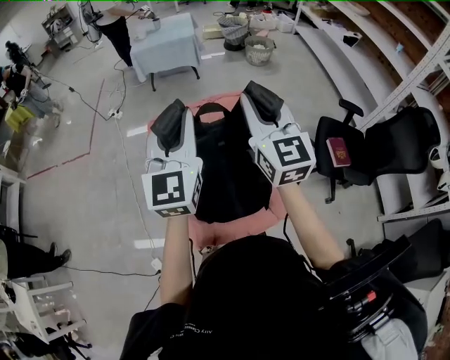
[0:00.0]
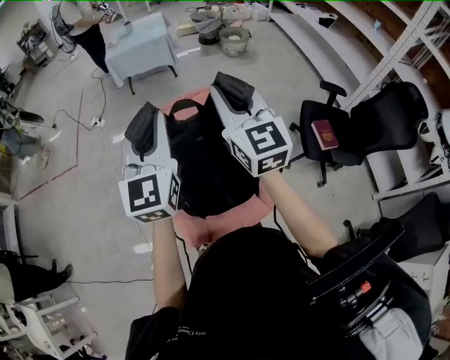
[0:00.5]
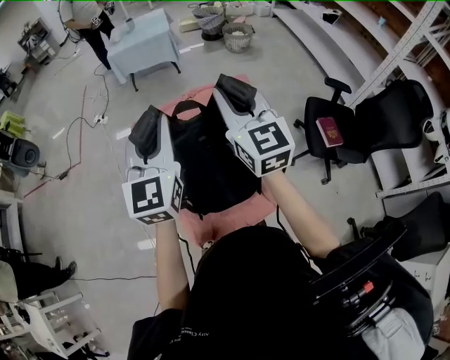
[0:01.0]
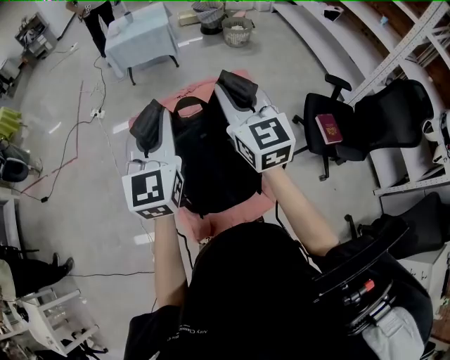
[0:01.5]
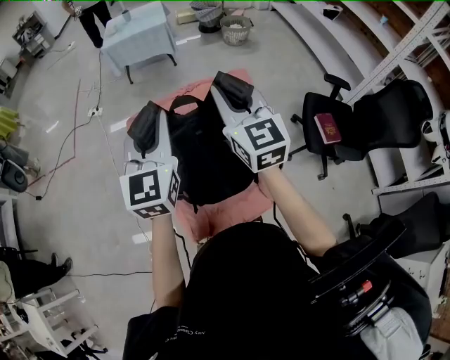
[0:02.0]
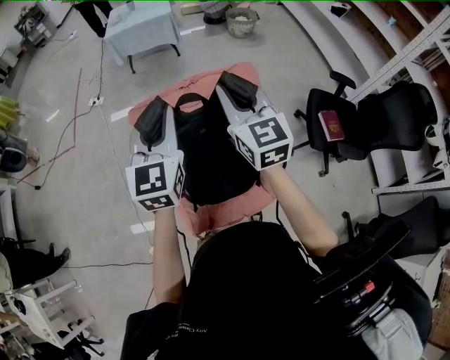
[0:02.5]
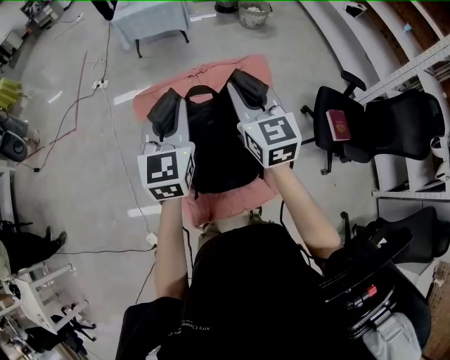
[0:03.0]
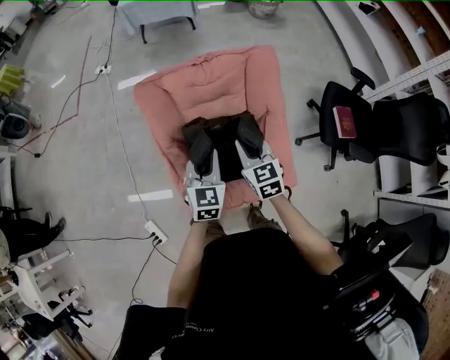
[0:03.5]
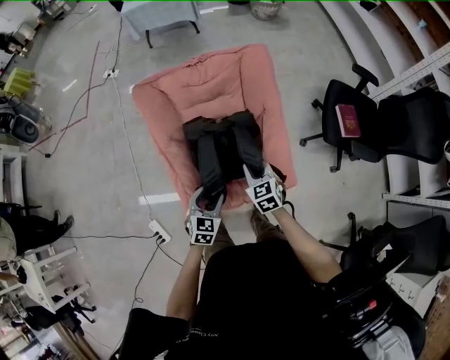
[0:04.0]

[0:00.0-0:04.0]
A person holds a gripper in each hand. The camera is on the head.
0:00.0 to 0:02.0: The left gripper moves approximately 5 cm. The right gripper moves about 5 cm.
0:02.0 to 0:04.0: Both grippers move downward and backward, roughly 40 cm. The left gripper points its fingers approximately 40 degrees further downward, and opens its fingers, while the right gripper tips its fingers downward by some 40 degrees.

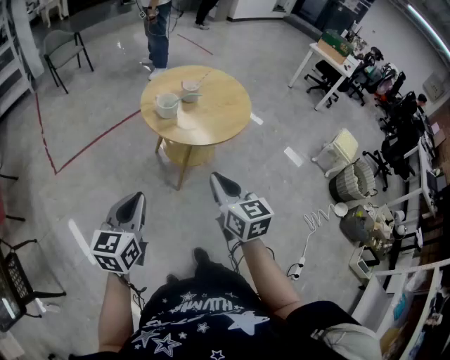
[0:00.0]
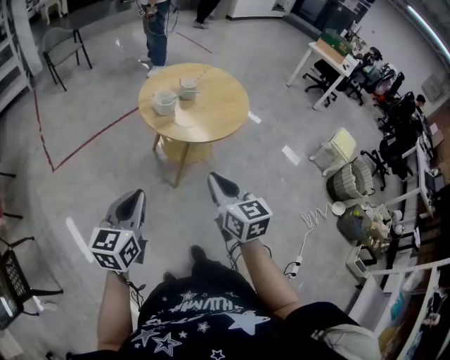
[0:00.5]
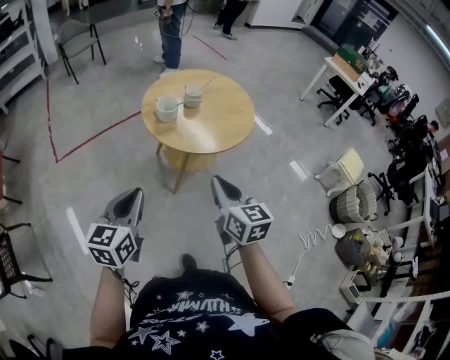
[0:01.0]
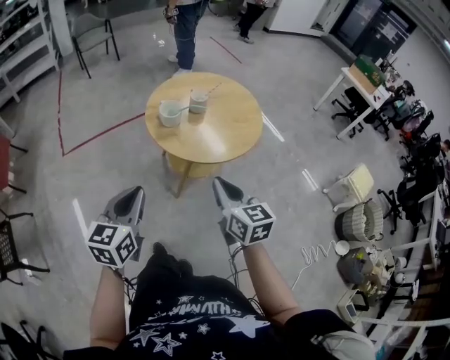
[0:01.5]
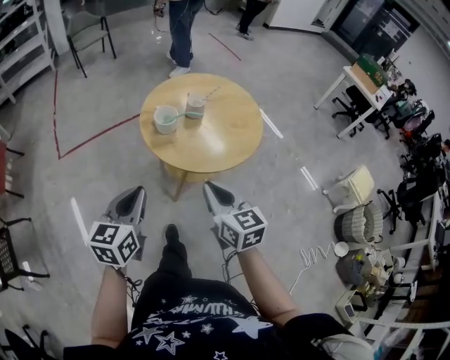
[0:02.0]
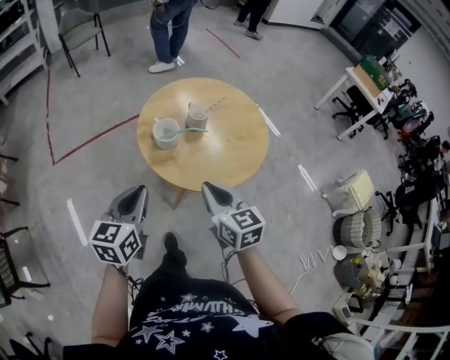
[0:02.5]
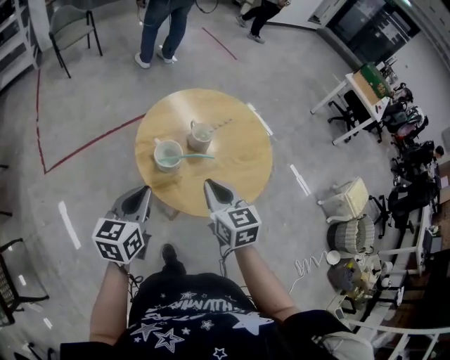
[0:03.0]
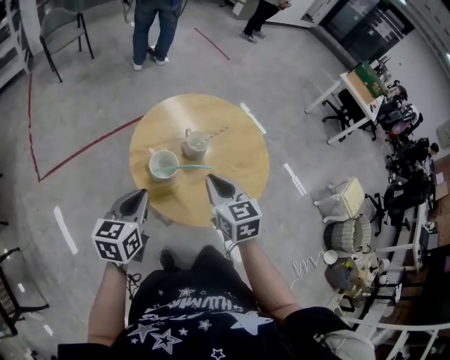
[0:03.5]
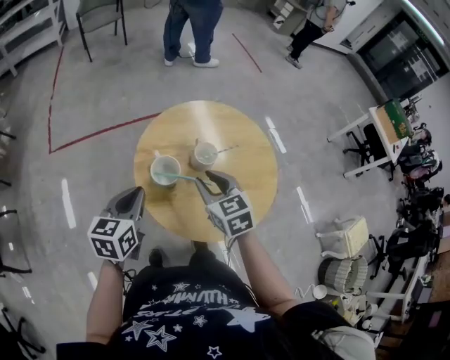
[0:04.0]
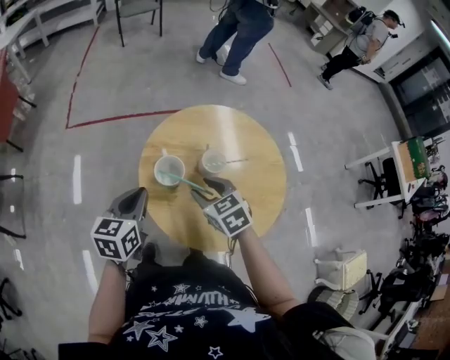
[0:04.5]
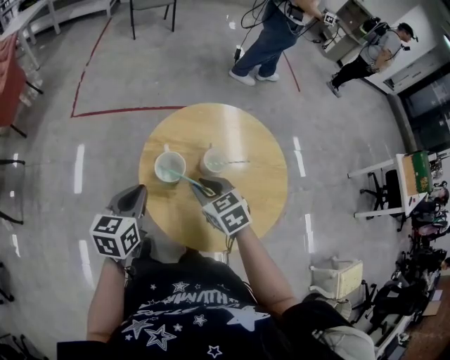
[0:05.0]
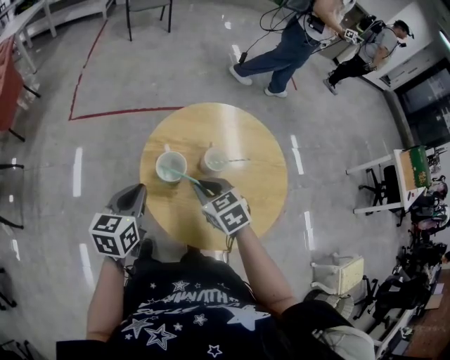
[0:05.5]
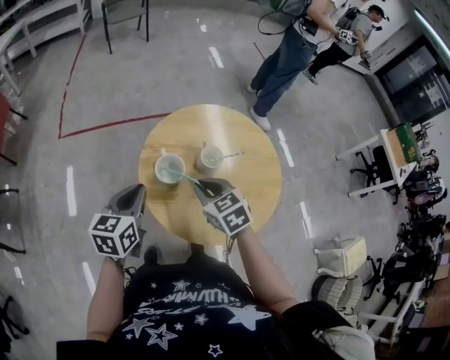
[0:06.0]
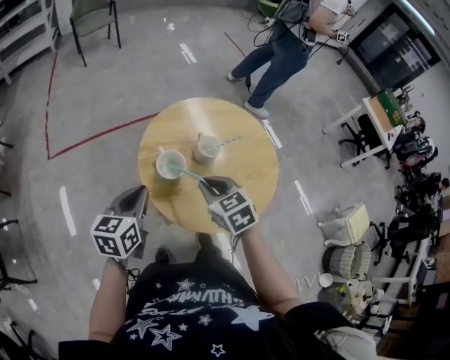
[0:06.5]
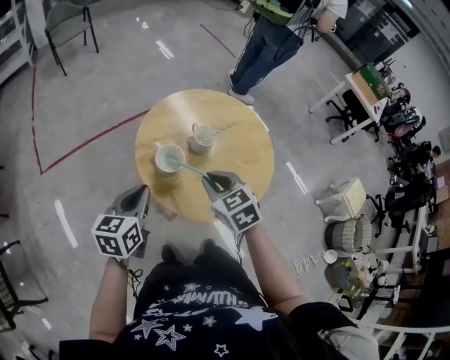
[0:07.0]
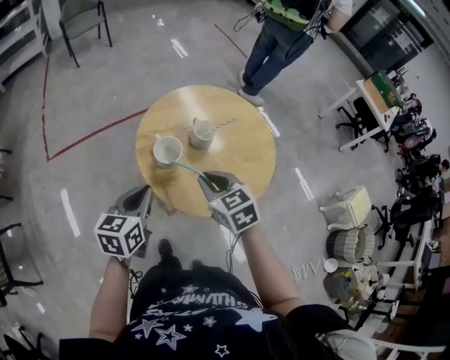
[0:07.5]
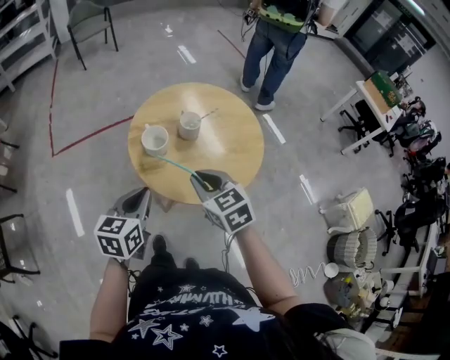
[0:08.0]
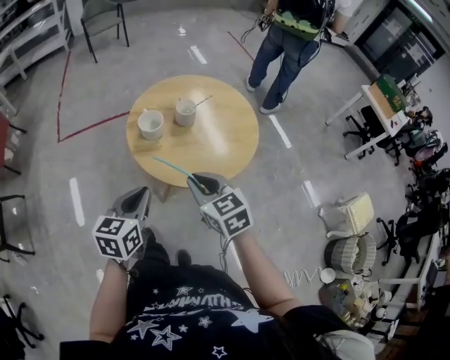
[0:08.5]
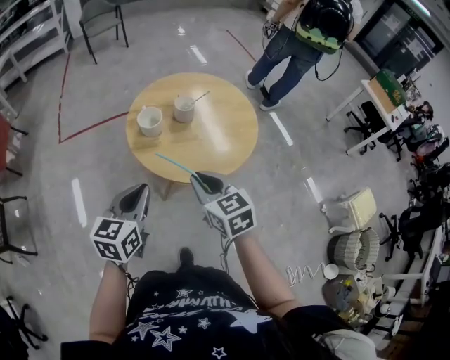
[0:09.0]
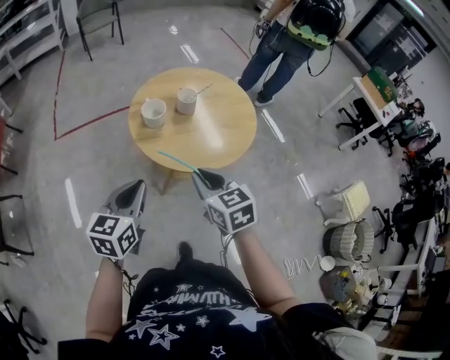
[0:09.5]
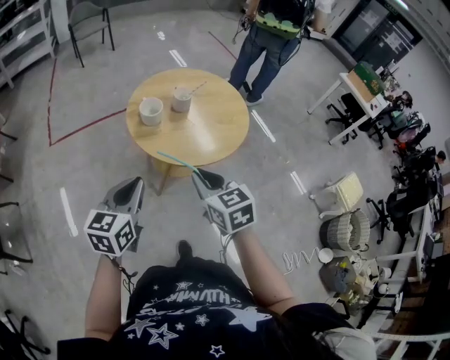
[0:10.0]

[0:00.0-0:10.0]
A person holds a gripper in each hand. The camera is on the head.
0:00.0 to 0:02.0: The grippers both shift forward and to the right by roughly 15 cm.
0:02.0 to 0:04.0: The two grippers go approximately 30 cm forward. The right gripper swivels about 30 degrees, and opens its fingers.
0:04.0 to 0:06.0: The right gripper changes place by roughly 5 cm.
0:06.0 to 0:08.0: The right gripper travels backward and upward by approximately 15 cm. The left gripper is displaced backward and to the right by roughly 15 cm.
0:08.0 to 0:10.0: Both grippers travel together backward, some 15 cm.

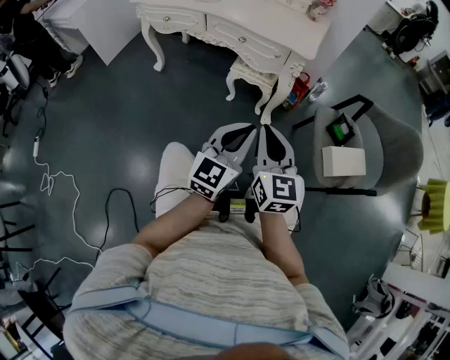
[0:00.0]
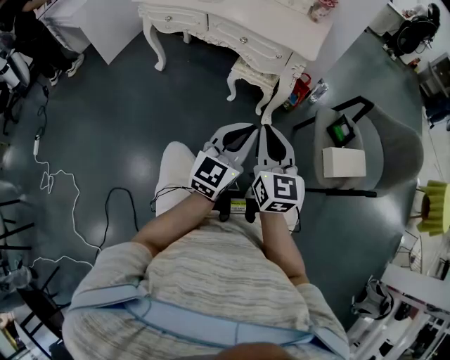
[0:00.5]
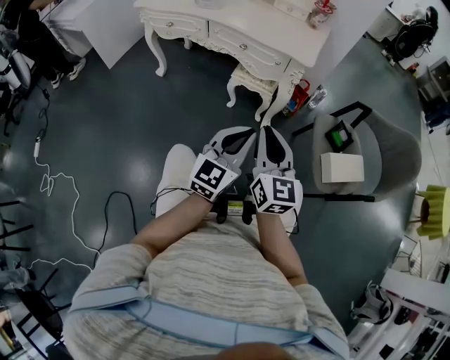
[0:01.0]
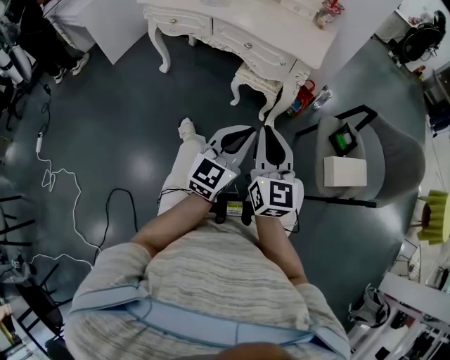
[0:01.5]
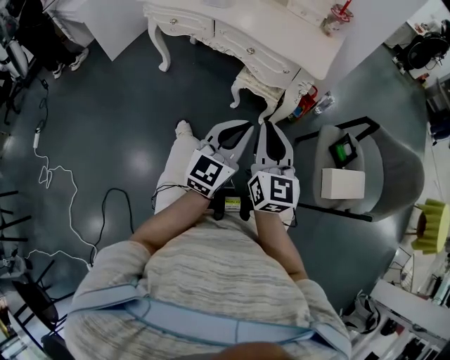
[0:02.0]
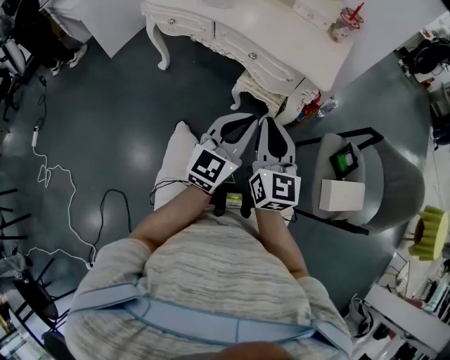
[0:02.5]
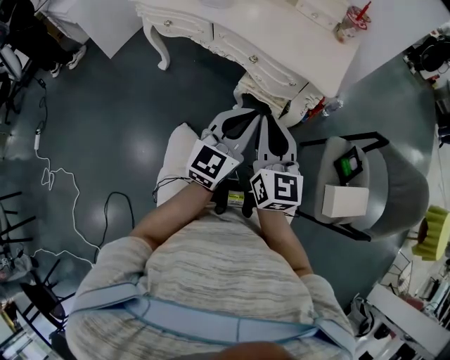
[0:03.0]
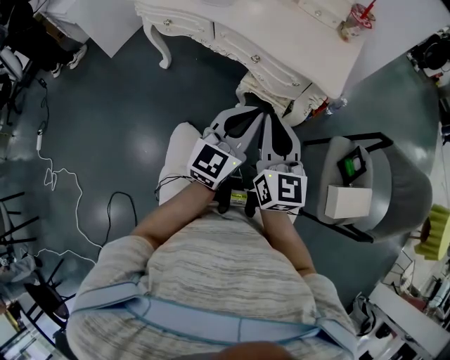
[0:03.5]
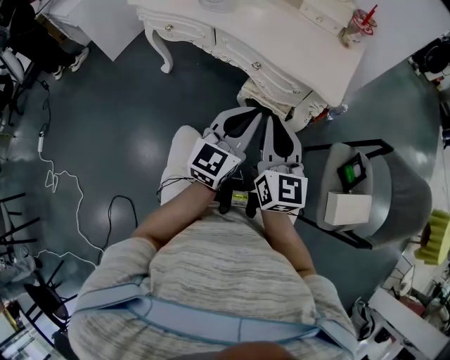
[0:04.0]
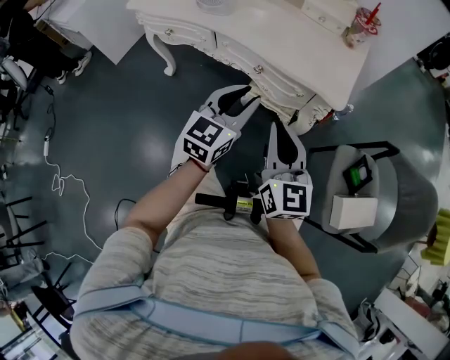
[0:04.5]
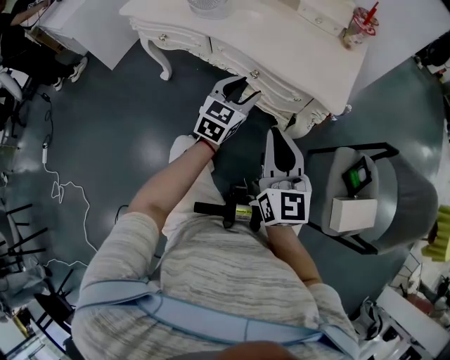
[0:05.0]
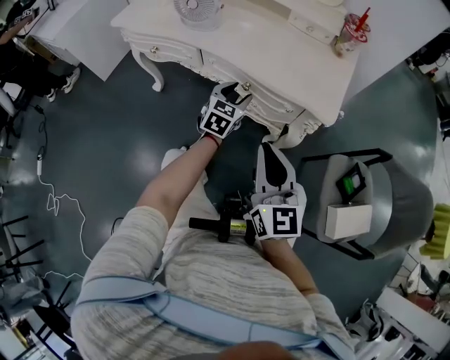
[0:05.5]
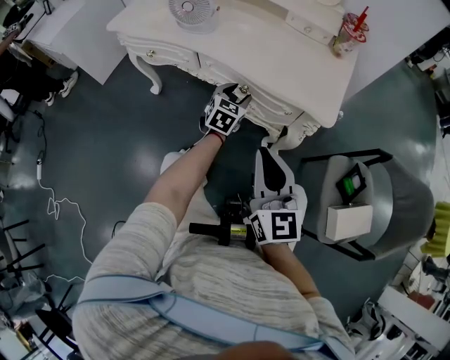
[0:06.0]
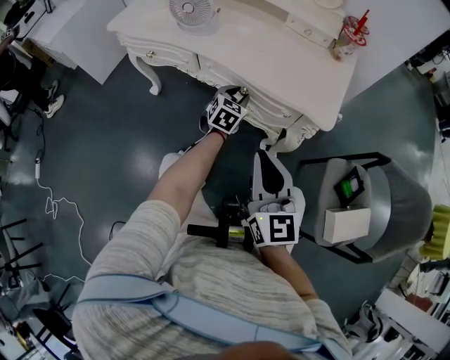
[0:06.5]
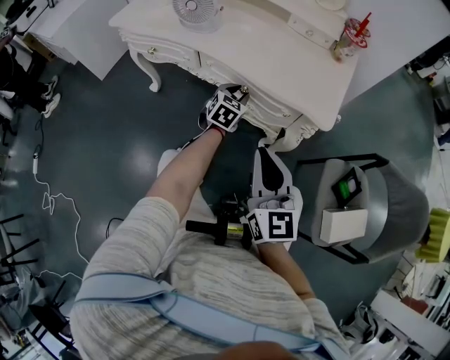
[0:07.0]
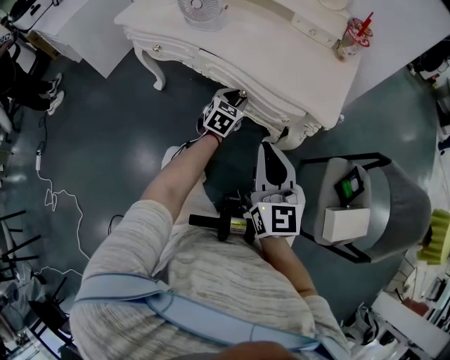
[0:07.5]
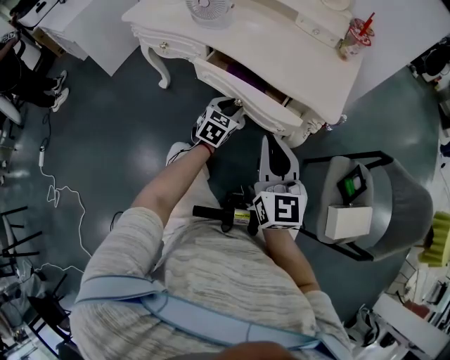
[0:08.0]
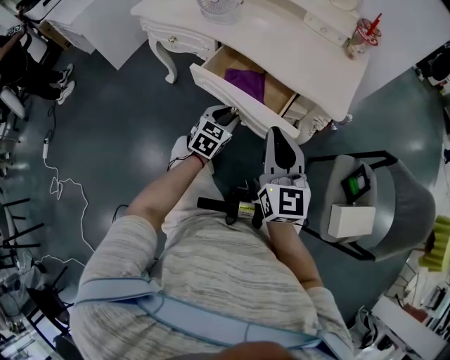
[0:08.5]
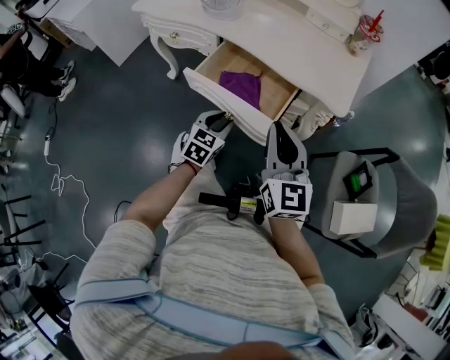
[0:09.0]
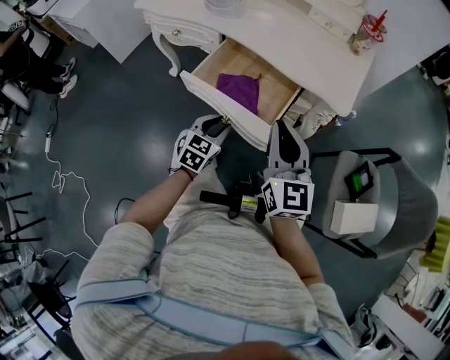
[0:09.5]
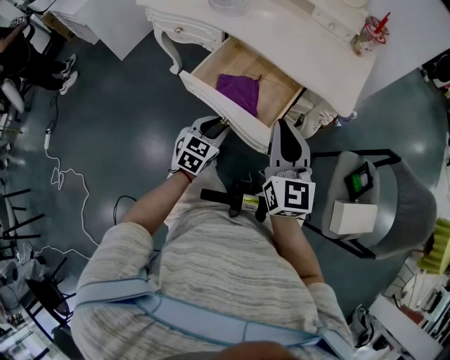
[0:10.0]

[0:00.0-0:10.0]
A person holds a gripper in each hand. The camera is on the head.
0:00.0 to 0:02.0: The grippers both shift forward by some 5 cm.
0:02.0 to 0:04.0: Both grippers move forward, about 15 cm.
0:04.0 to 0:06.0: The left gripper moves forward and downward, roughly 30 cm, swivels some 30 degrees, and opens up.
0:06.0 to 0:08.0: The left gripper heads backward, covering about 10 cm.
0:08.0 to 0:10.0: The left gripper is displaced backward by approximately 15 cm.

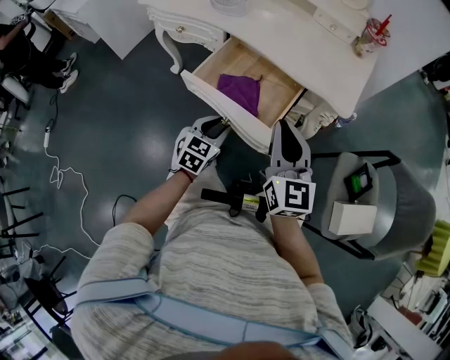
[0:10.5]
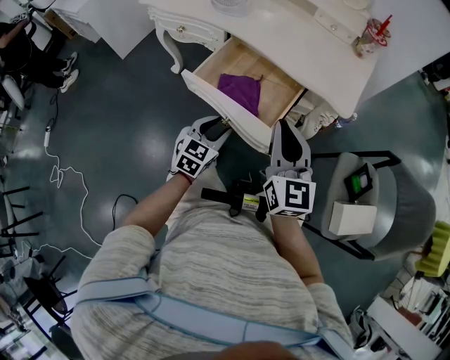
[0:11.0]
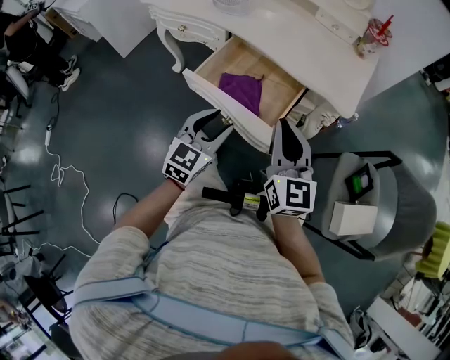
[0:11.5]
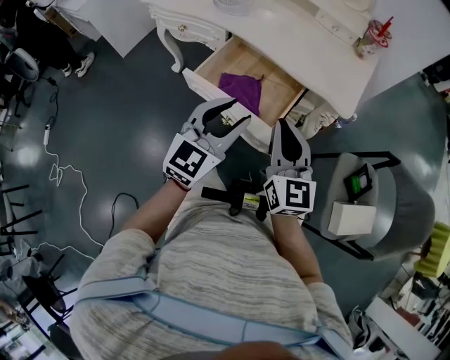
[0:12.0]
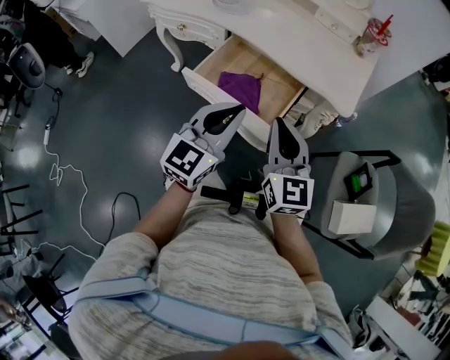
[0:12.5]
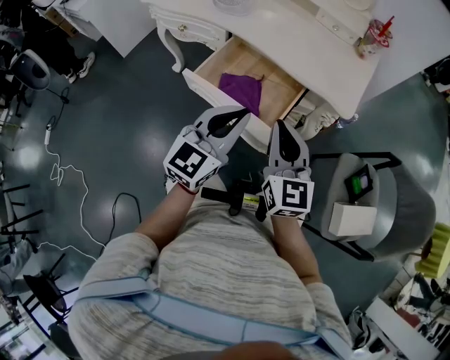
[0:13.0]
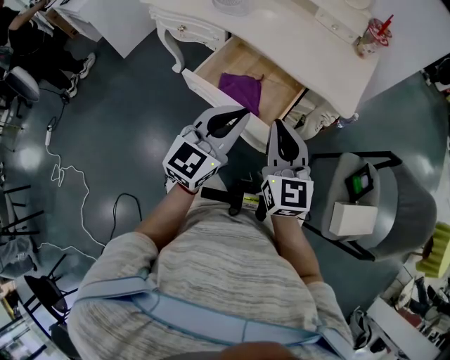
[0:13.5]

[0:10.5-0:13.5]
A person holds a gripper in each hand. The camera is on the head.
0:10.5 to 0:12.0: The left gripper goes roughly 20 cm upward, and changes its angle by approximately 30 degrees.
0:12.0 to 0:13.5: The left gripper closes its fingers.
